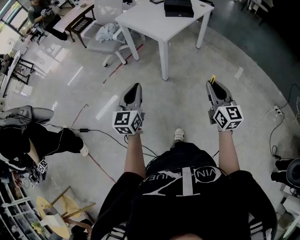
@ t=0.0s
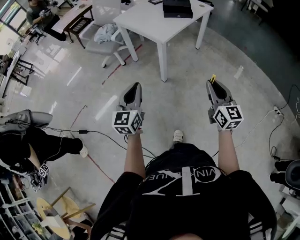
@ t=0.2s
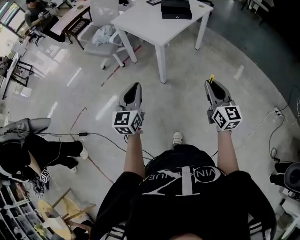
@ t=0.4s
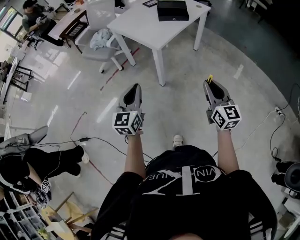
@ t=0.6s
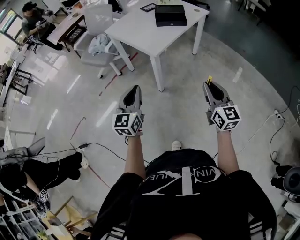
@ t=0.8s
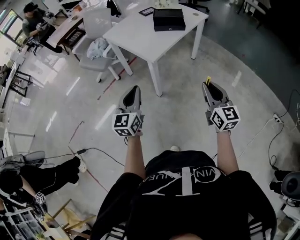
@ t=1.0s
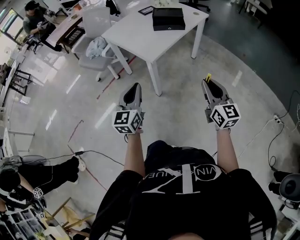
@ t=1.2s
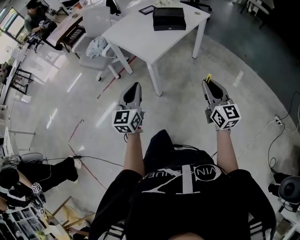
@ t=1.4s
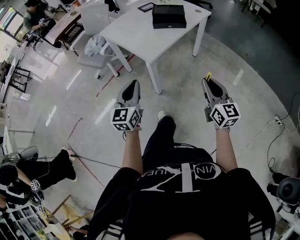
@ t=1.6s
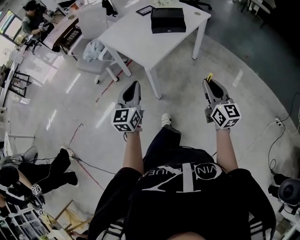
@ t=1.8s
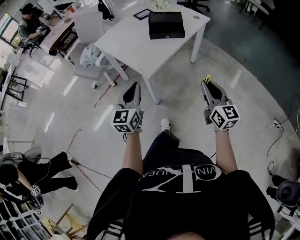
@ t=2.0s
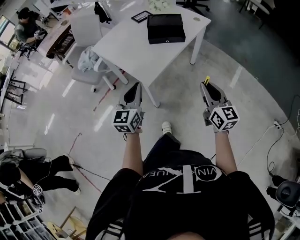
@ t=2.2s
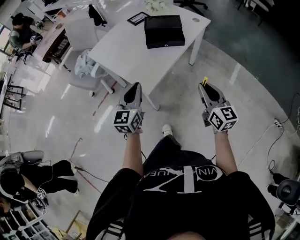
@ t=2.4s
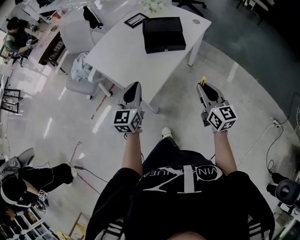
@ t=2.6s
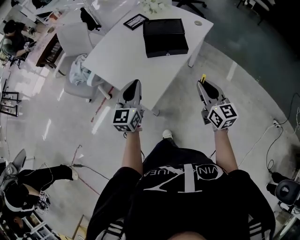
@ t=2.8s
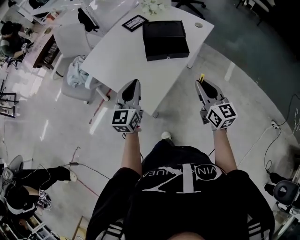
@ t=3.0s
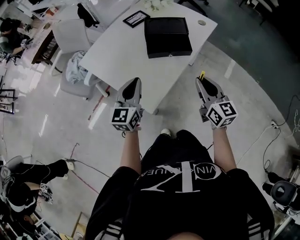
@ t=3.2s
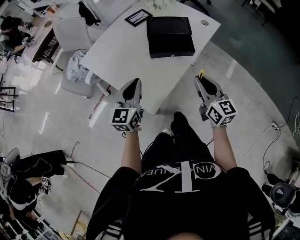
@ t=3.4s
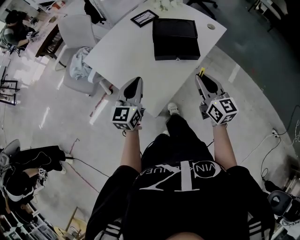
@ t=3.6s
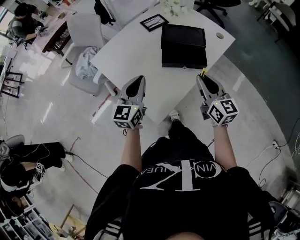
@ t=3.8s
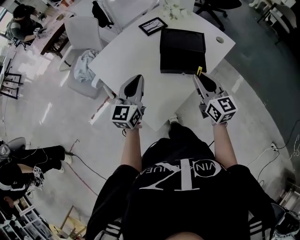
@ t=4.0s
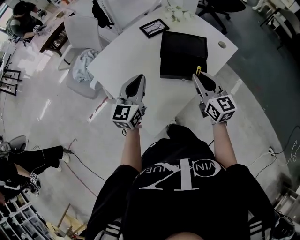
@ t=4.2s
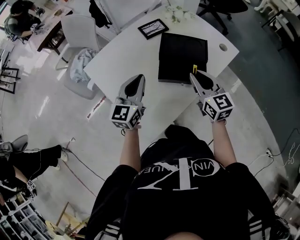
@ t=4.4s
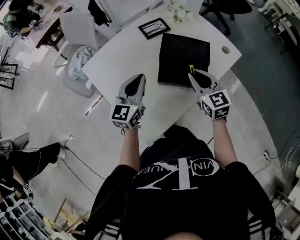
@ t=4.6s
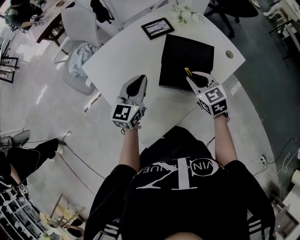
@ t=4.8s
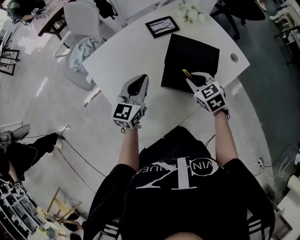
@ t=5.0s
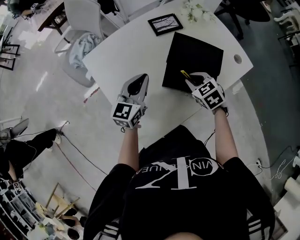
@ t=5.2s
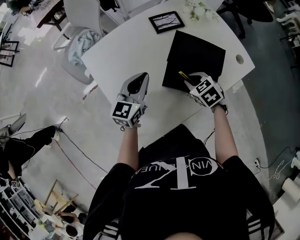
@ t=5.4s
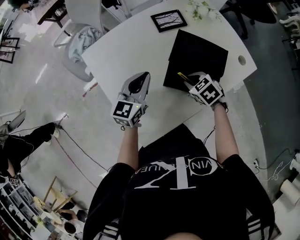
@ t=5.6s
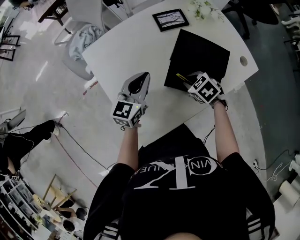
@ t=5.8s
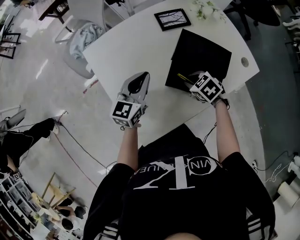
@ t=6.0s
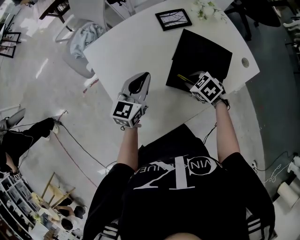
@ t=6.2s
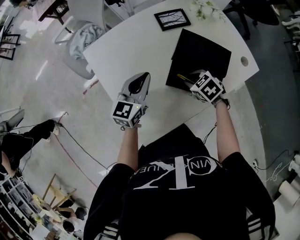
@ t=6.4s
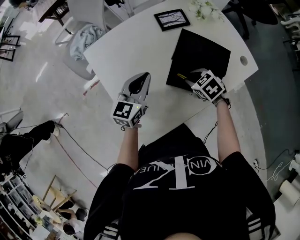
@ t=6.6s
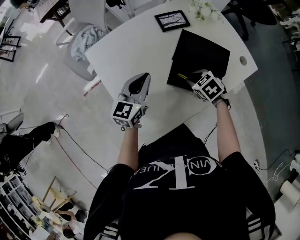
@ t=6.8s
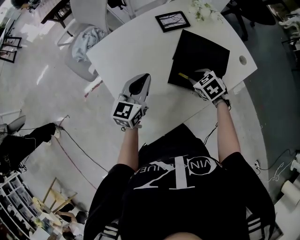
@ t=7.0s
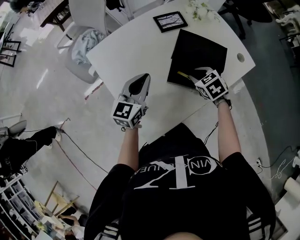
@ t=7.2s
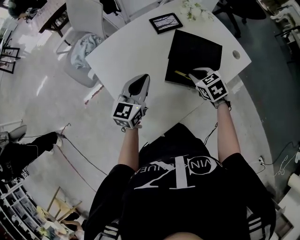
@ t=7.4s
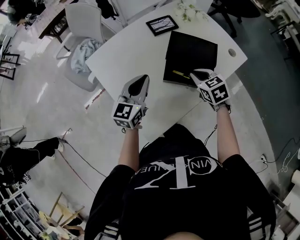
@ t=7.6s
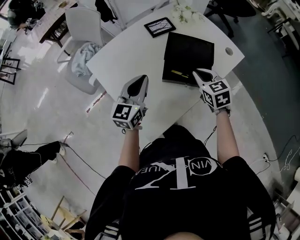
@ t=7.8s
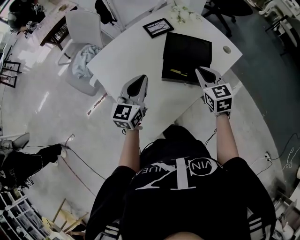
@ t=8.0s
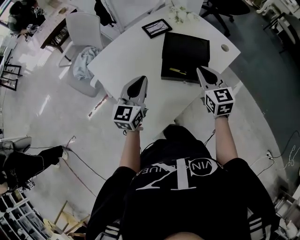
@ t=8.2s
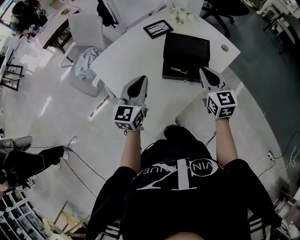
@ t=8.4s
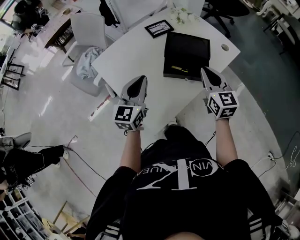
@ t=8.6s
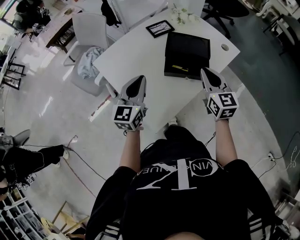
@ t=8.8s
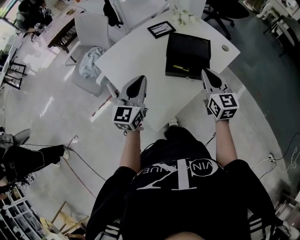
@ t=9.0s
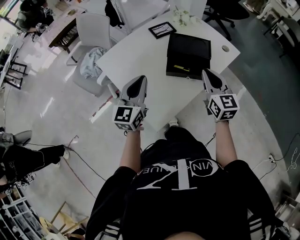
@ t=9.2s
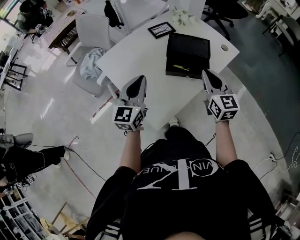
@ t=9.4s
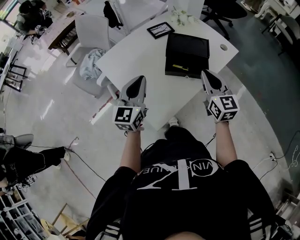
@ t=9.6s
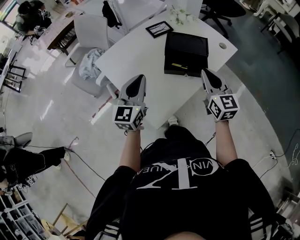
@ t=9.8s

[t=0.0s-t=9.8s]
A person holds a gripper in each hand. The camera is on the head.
t=0.0s to t=1.4s: The grippers both shift forward and to the right by about 20 cm.
t=1.4s to t=2.8s: Both grippers travel together forward, about 30 cm.
t=2.8s to t=4.2s: The grippers both shift forward by approximately 20 cm.
t=4.2s to t=5.6s: The right gripper is displaced downward and forward by approximately 20 cm, and angles its fingers downward, by some 50 degrees, while the left gripper travels forward and downward by approximately 10 cm.
t=5.6s to t=7.0s: The grippers stay close to where they were, moving slightly.
t=7.0s to t=8.4s: The left gripper goes some 10 cm upward and backward, while the right gripper travels upward and backward by about 20 cm, and tips its fingers upward by some 50 degrees.
t=8.4s to t=9.8s: The left gripper shifts by roughly 5 cm. The right gripper goes about 5 cm backward.

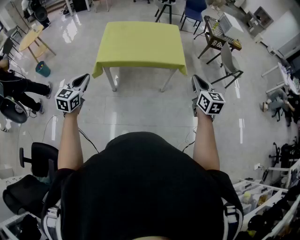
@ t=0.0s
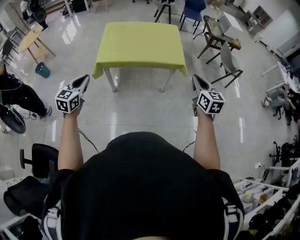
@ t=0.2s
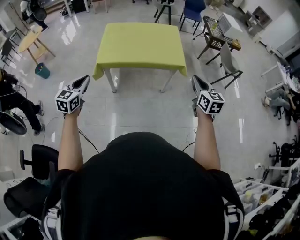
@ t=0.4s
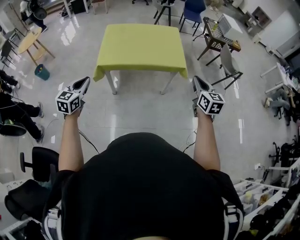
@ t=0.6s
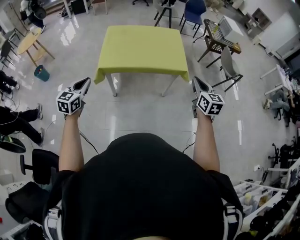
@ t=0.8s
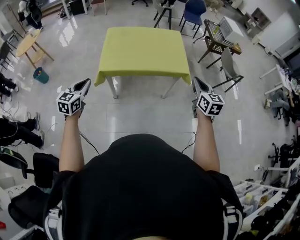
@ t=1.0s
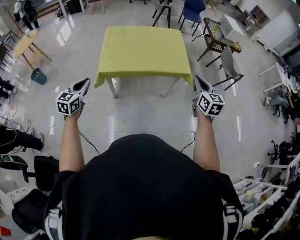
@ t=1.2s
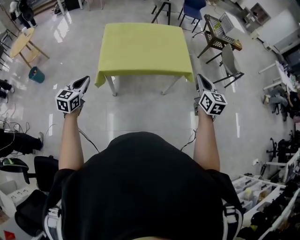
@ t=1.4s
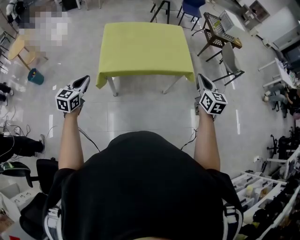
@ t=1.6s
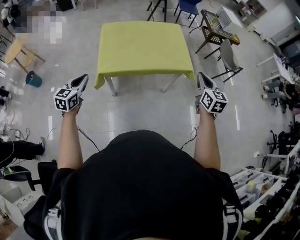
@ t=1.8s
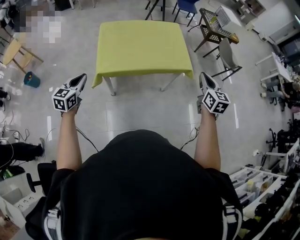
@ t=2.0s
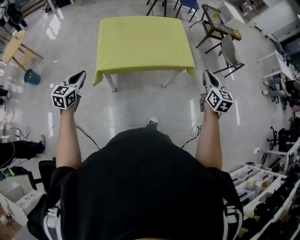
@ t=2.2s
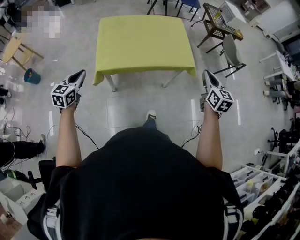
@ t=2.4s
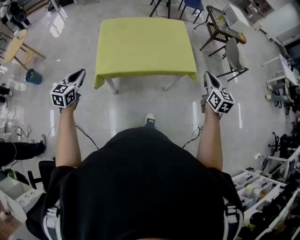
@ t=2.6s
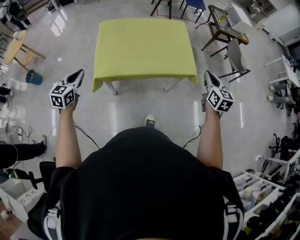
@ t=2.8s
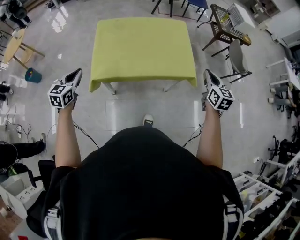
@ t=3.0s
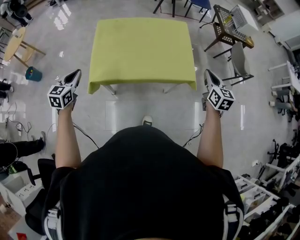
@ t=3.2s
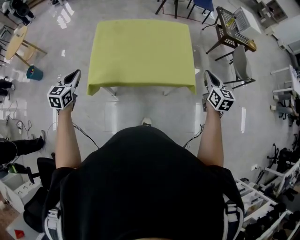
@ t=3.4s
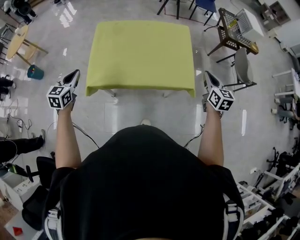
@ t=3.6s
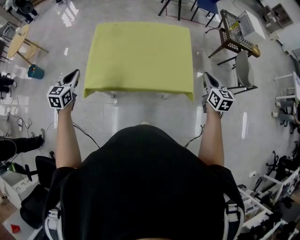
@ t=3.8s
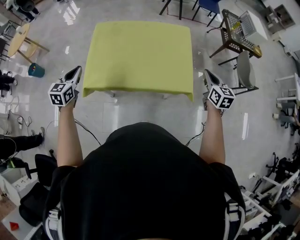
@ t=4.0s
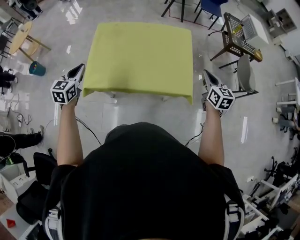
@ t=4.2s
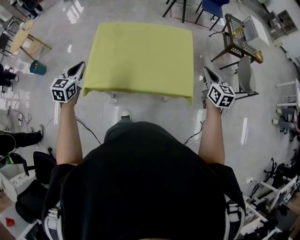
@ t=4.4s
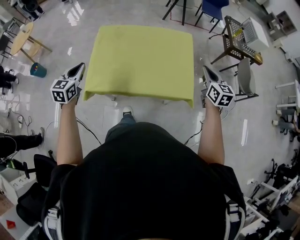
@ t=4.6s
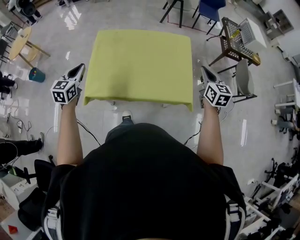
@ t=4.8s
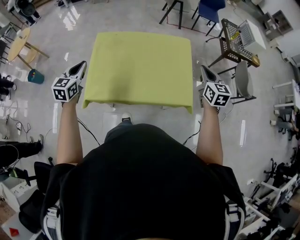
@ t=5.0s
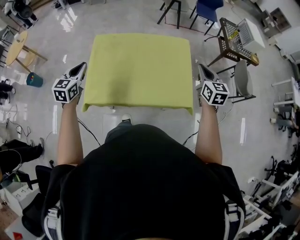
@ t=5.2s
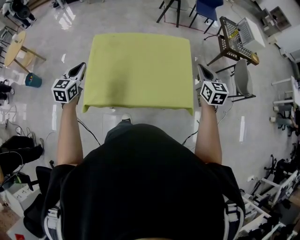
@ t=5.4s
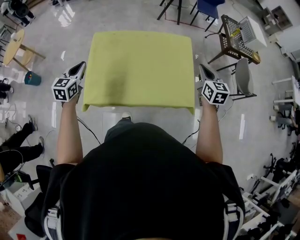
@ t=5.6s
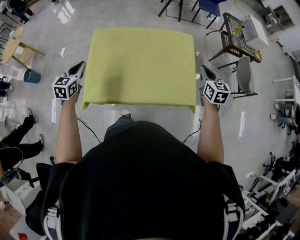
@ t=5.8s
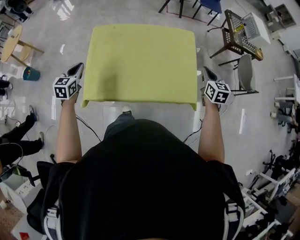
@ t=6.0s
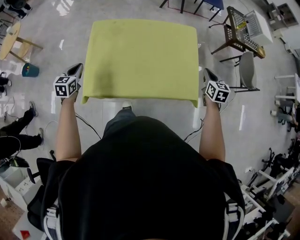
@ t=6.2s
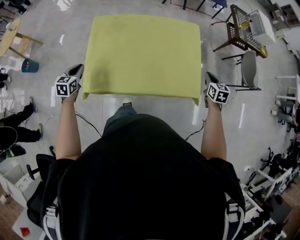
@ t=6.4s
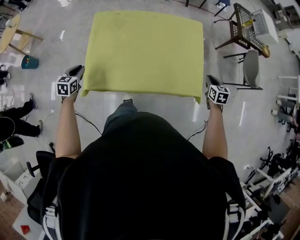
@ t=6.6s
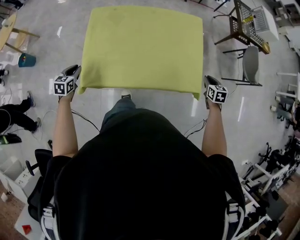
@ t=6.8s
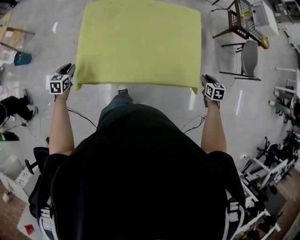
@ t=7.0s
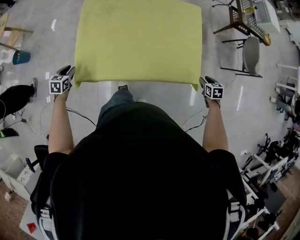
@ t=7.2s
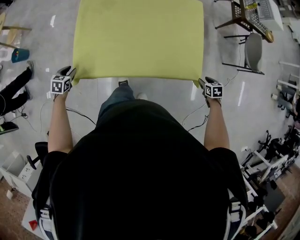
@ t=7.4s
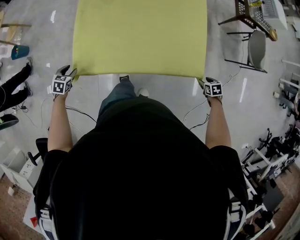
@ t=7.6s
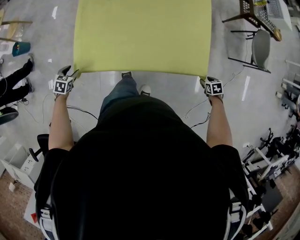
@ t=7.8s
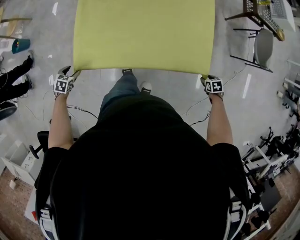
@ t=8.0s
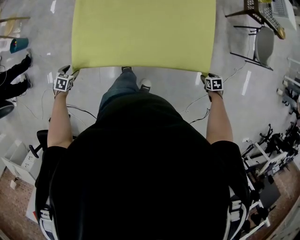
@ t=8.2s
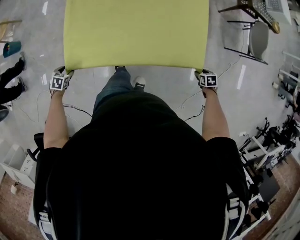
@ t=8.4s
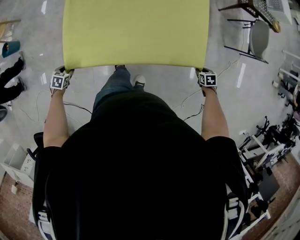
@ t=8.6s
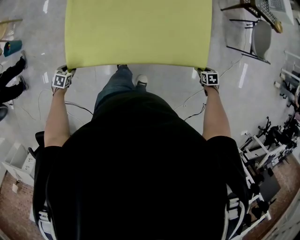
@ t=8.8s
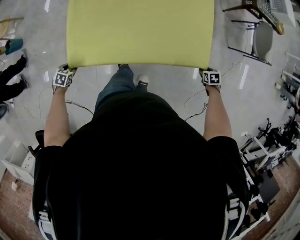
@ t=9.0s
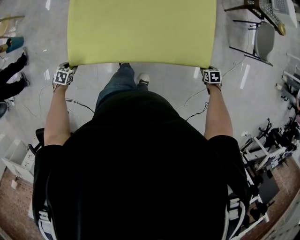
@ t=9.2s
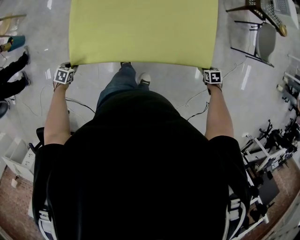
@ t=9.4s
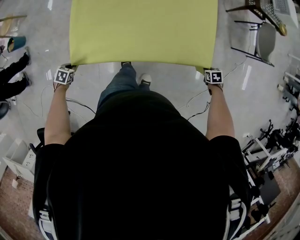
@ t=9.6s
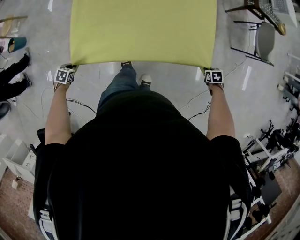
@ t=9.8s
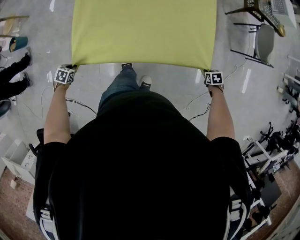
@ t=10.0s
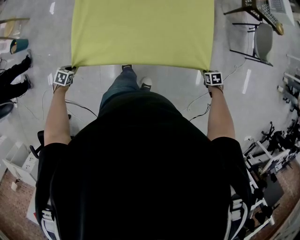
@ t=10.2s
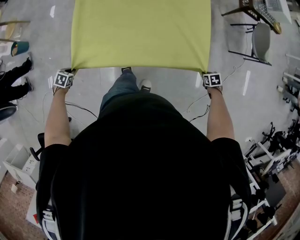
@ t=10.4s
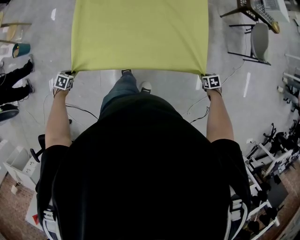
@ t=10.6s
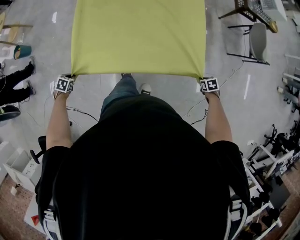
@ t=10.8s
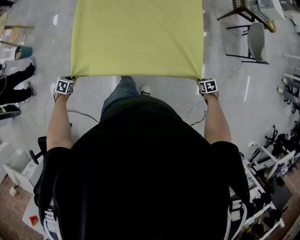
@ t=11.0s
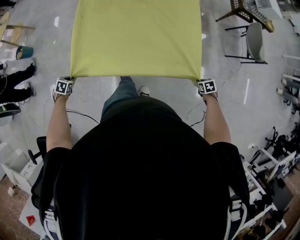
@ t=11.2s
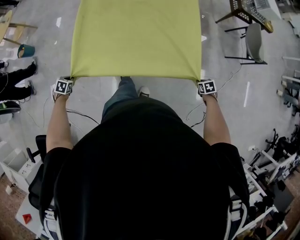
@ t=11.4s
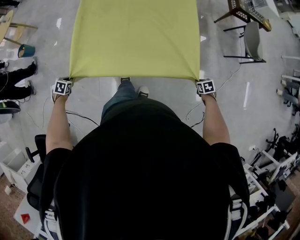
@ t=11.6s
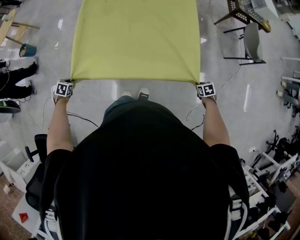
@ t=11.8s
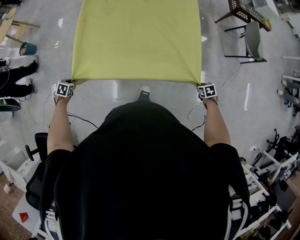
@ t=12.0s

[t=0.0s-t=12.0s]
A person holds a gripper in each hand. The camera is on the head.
t=0.0s to t=1.6s: Both grippers move forward and to the left, about 20 cm.
t=1.6s to t=3.0s: The two grippers go approximately 20 cm forward.
t=3.0s to t=4.4s: The right gripper goes about 20 cm forward; the left gripper is displaced forward and to the right by approximately 15 cm.
t=4.4s to t=6.0s: The right gripper shifts roughly 10 cm forward and downward. Meanwhile the left gripper is displaced forward, downward and to the left by about 20 cm.
t=6.0s to t=7.6s: The two grippers go some 30 cm downward. The right gripper tips its fingers downward by about 50 degrees, and opens up. Meanwhile the left gripper angles its fingers downward, by some 30 degrees, and opens.
t=7.6s to t=9.0s: The right gripper heads downward, covering some 5 cm. Meanwhile the left gripper moves downward, some 10 cm.
t=9.0s to t=10.4s: The right gripper closes up; the left gripper closes up.
t=10.4s to t=12.0s: The right gripper ends up approximately 20 cm from where it was; the left gripper moves roughly 20 cm.

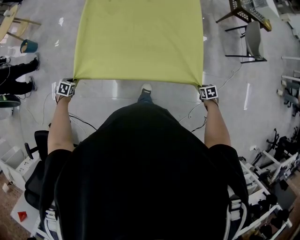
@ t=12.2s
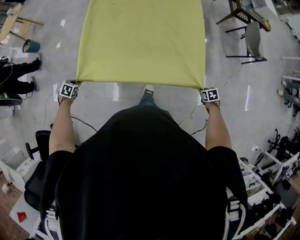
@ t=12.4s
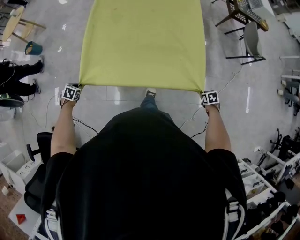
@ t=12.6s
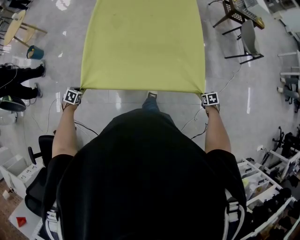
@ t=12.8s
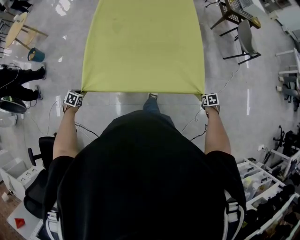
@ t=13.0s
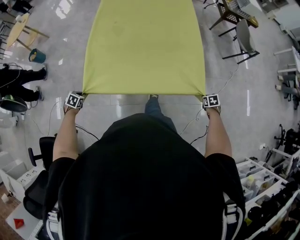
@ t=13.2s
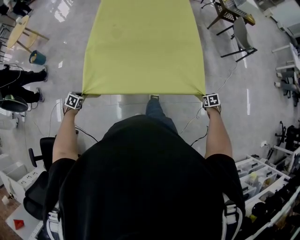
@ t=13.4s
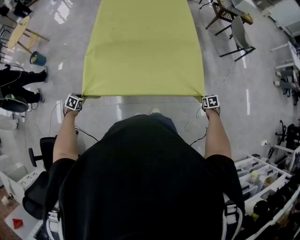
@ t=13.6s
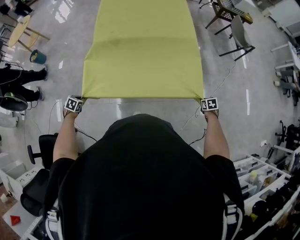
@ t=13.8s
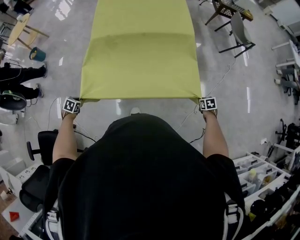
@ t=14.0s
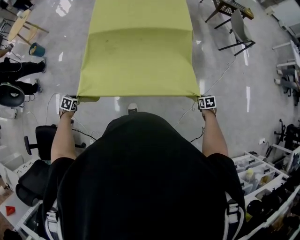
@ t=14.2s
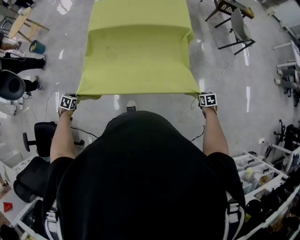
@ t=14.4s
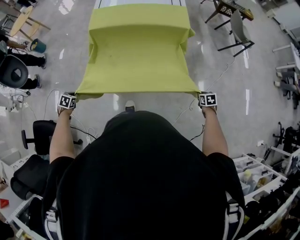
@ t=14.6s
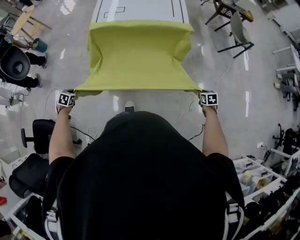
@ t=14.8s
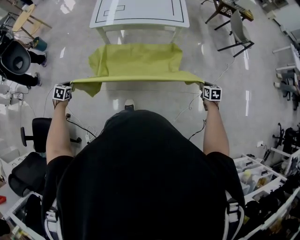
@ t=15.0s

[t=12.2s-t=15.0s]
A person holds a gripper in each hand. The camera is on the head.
t=12.2s to t=13.6s: The left gripper changes place by roughly 30 cm; the right gripper changes place by roughly 30 cm.
t=13.6s to t=15.0s: The left gripper changes place by approximately 15 cm. Meanwhile the right gripper moves roughly 10 cm.
